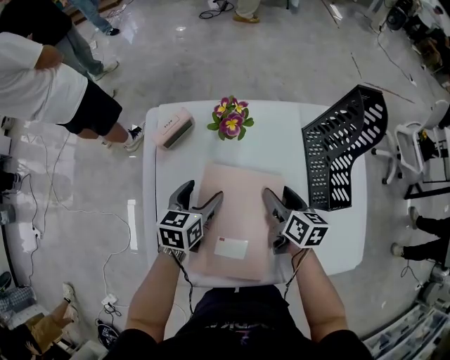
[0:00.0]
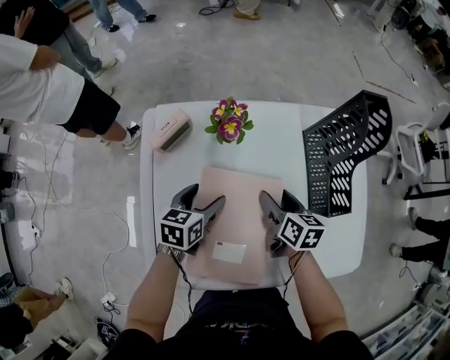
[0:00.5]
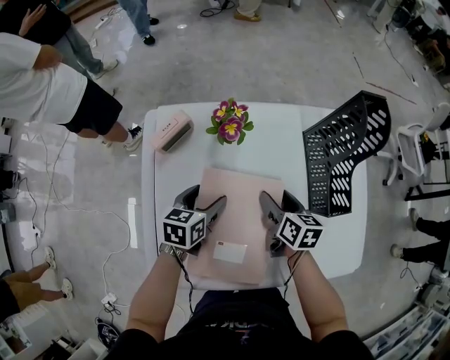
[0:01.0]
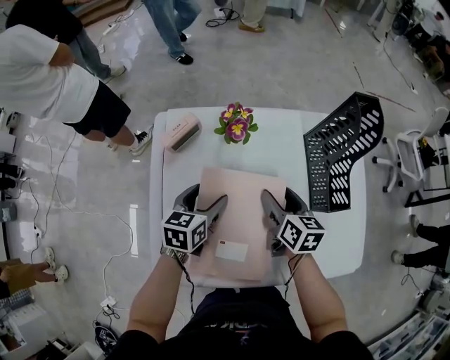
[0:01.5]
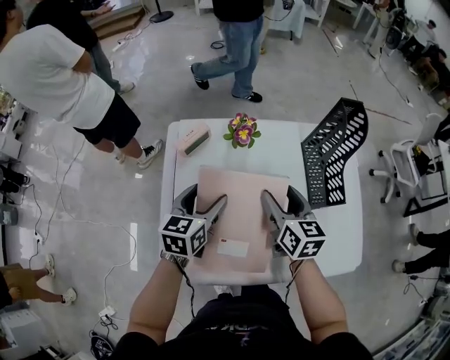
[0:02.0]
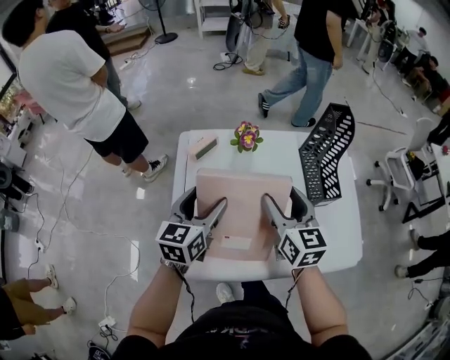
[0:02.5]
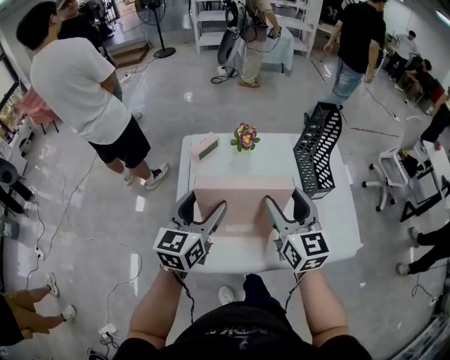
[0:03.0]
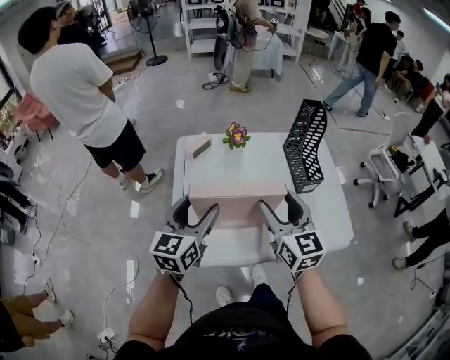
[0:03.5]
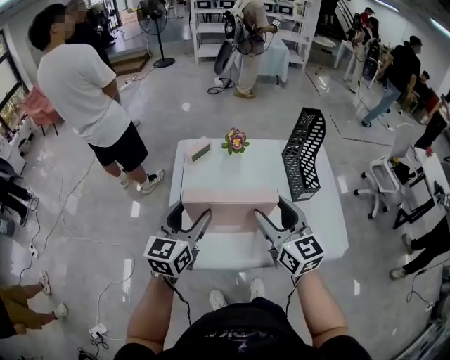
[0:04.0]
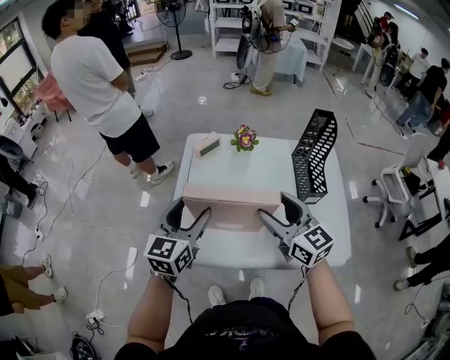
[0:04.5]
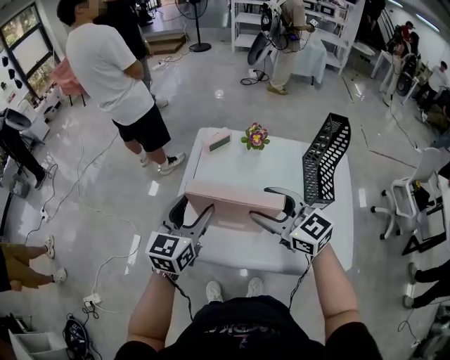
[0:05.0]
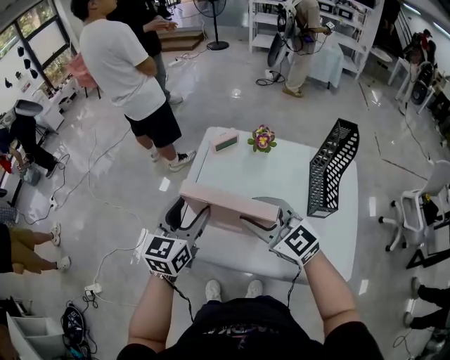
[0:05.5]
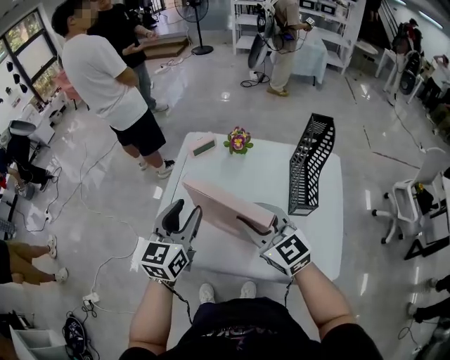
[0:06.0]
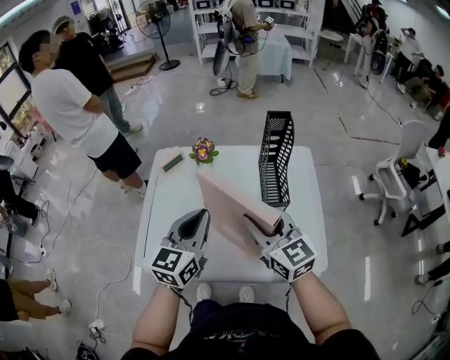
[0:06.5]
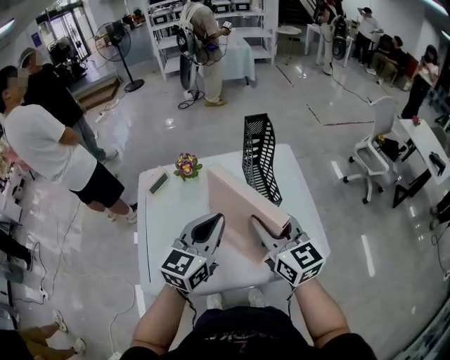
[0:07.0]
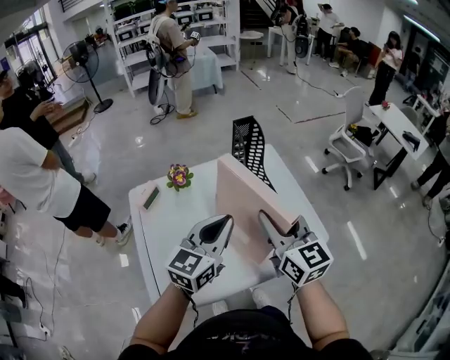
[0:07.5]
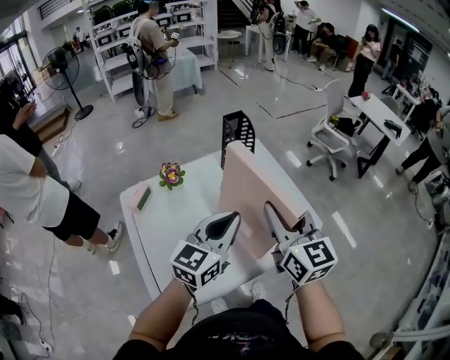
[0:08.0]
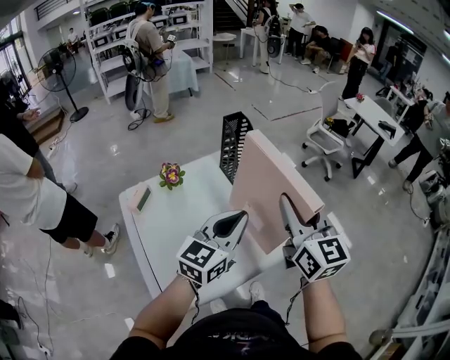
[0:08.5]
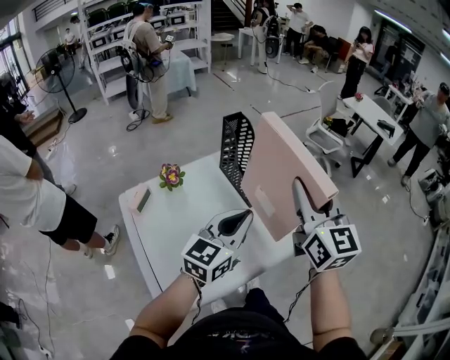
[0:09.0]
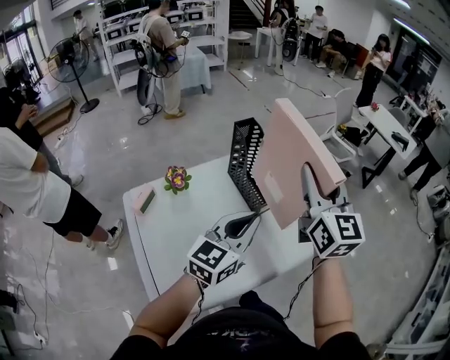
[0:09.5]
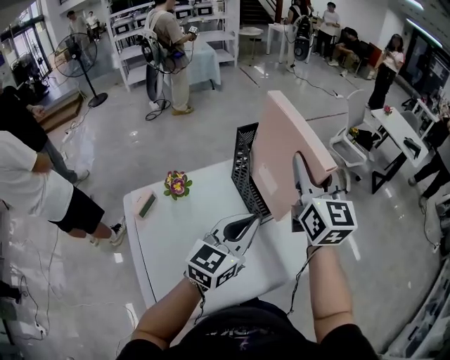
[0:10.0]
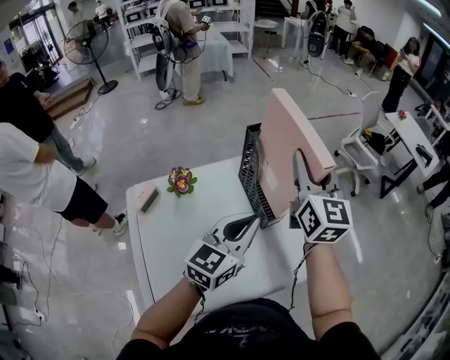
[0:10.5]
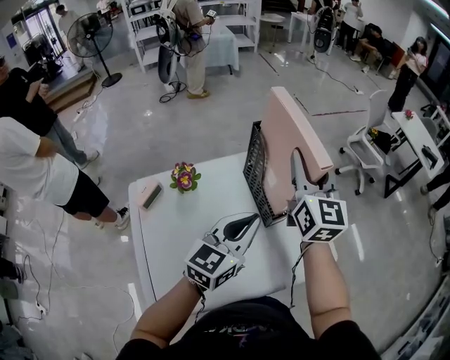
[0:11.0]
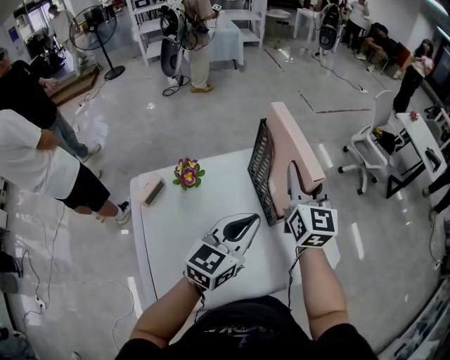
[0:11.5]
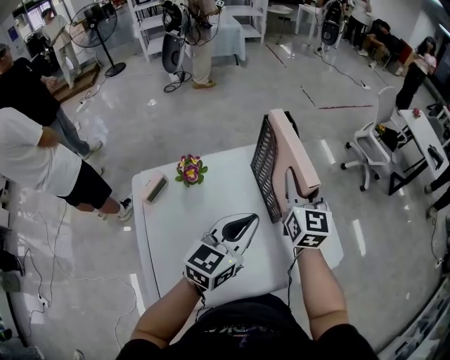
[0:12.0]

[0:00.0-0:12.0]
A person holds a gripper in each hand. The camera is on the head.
0:00.0 to 0:02.0: The grippers both shift upward by about 10 cm. The right gripper swivels about 20 degrees.
0:02.0 to 0:04.0: The two grippers go about 20 cm backward and upward. The right gripper swivels some 30 degrees. Meanwhile the left gripper rotates approximately 20 degrees.
0:04.0 to 0:06.0: The left gripper ends up about 5 cm from where it was. Meanwhile the right gripper turns by approximately 30 degrees, and closes its fingers.
0:06.0 to 0:08.0: The left gripper shifts by approximately 20 cm, changes its angle by approximately 60 degrees, and closes up. The right gripper ends up some 15 cm from where it was, and turns by some 60 degrees.
0:08.0 to 0:10.0: The right gripper moves forward, approximately 20 cm. Meanwhile the left gripper heads forward, covering roughly 10 cm.
0:10.0 to 0:12.0: The left gripper travels to the left by about 5 cm, while the right gripper is displaced downward and to the left by approximately 15 cm.

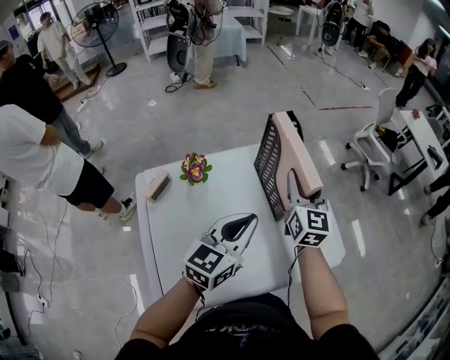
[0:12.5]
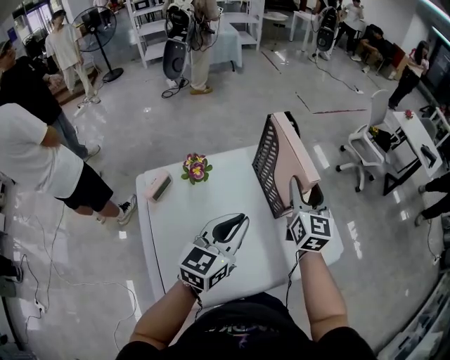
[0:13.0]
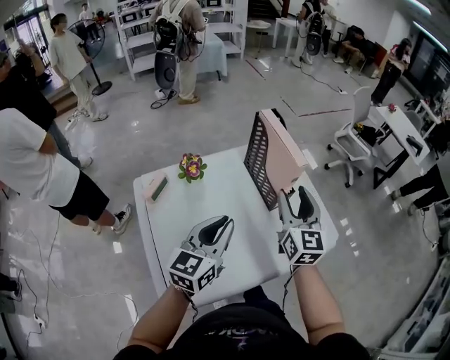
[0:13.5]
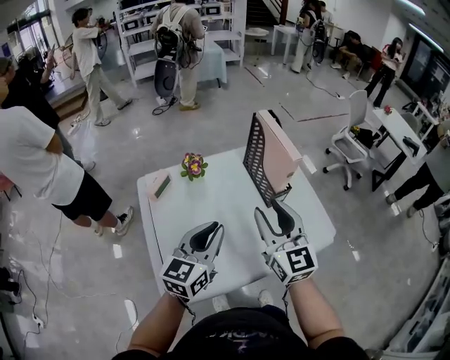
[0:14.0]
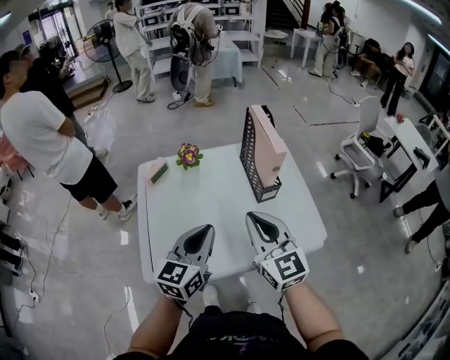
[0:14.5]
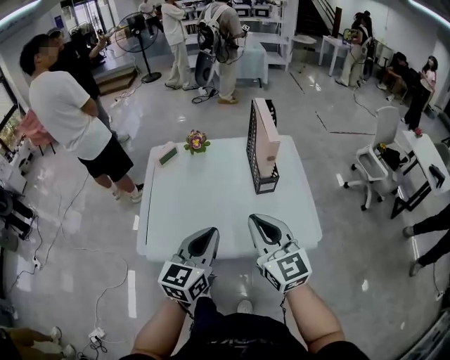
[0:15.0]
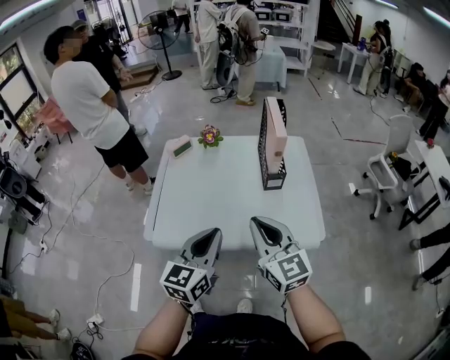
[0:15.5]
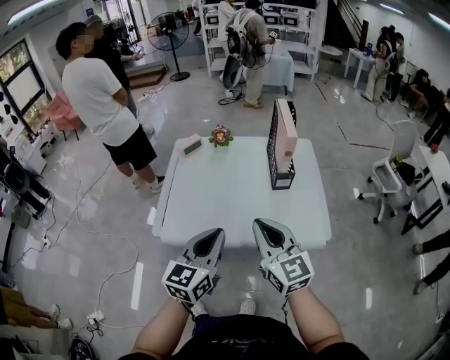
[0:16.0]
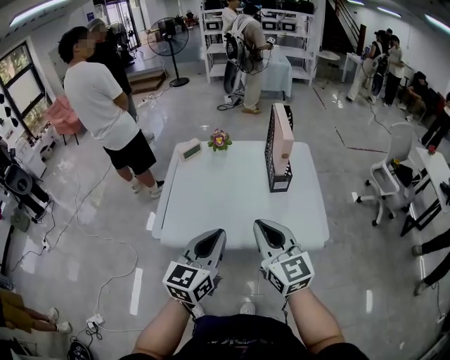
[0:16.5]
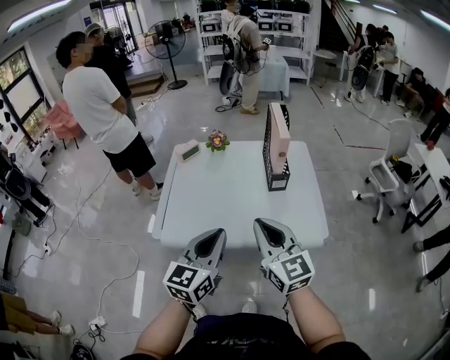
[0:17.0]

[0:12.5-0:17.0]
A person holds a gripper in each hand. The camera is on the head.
0:12.5 to 0:14.5: The right gripper travels backward by roughly 25 cm, rotates roughly 30 degrees, and closes, while the left gripper heads backward, covering roughly 15 cm.
0:14.5 to 0:17.0: The two grippers go roughly 15 cm backward.

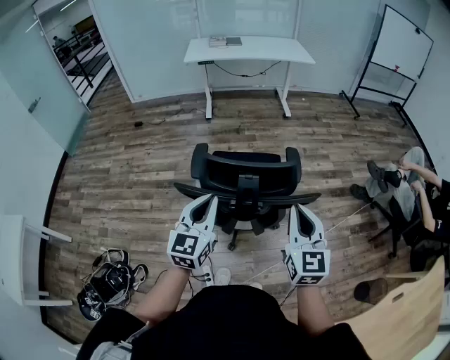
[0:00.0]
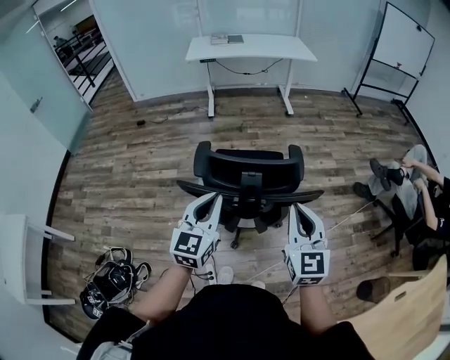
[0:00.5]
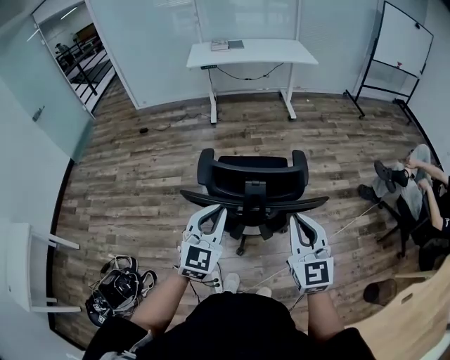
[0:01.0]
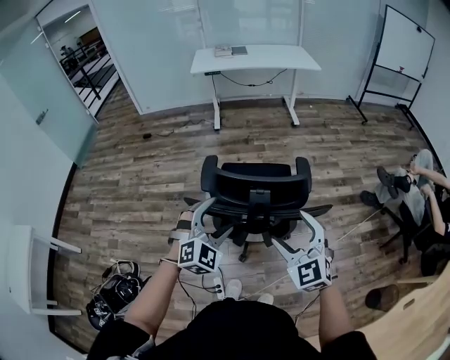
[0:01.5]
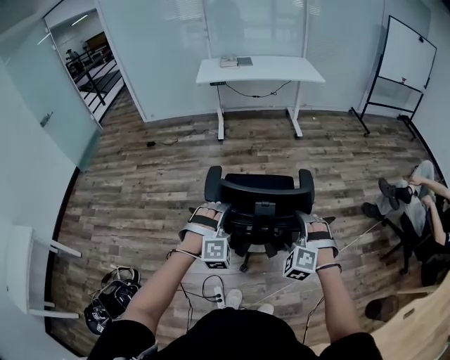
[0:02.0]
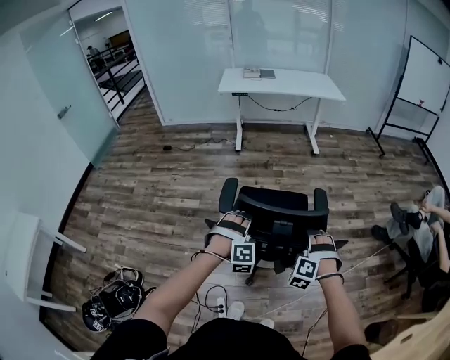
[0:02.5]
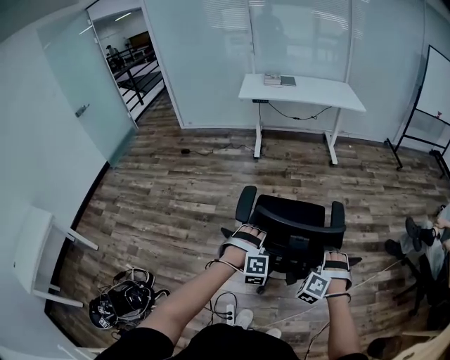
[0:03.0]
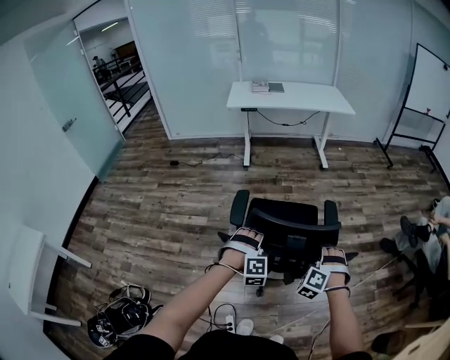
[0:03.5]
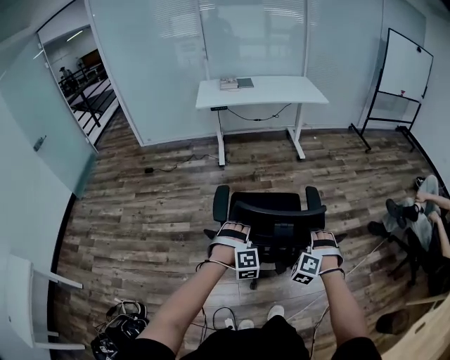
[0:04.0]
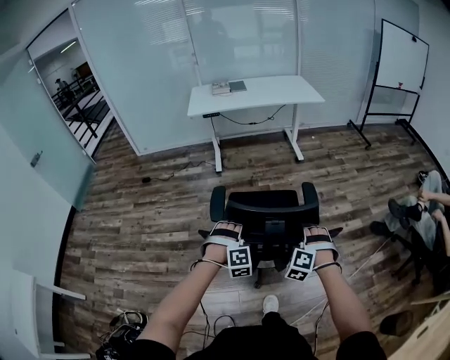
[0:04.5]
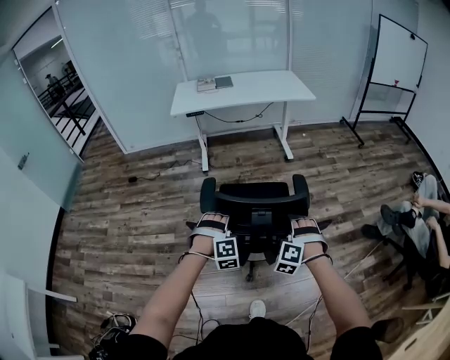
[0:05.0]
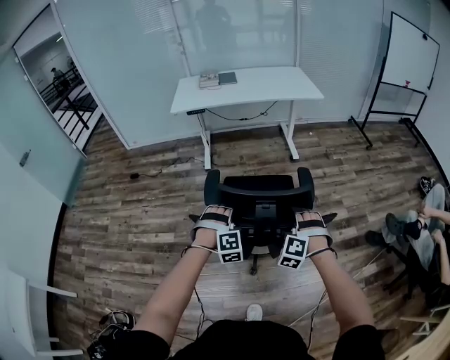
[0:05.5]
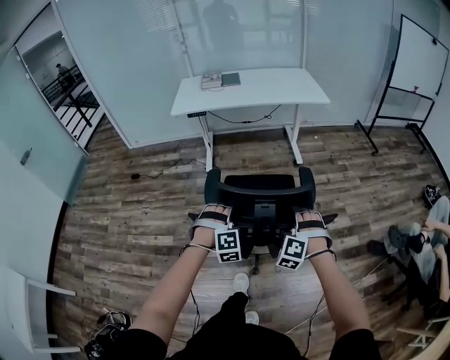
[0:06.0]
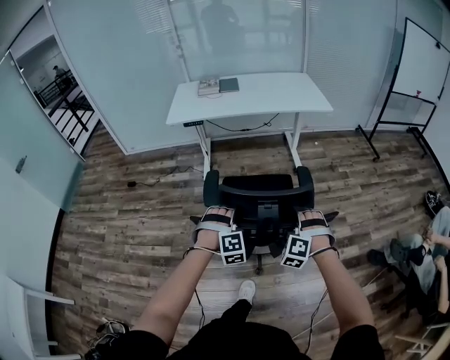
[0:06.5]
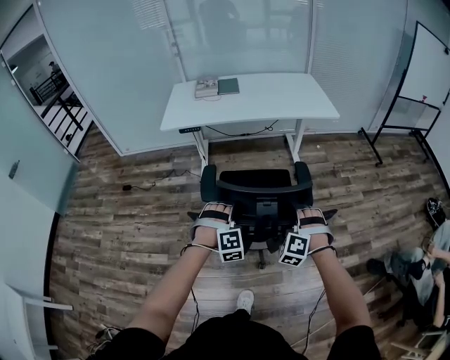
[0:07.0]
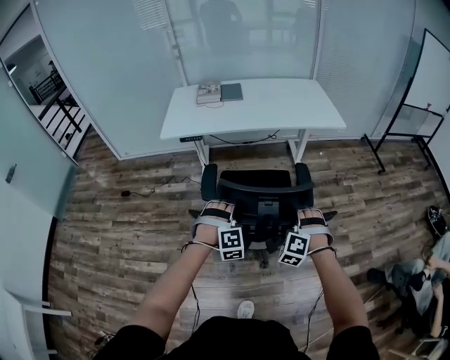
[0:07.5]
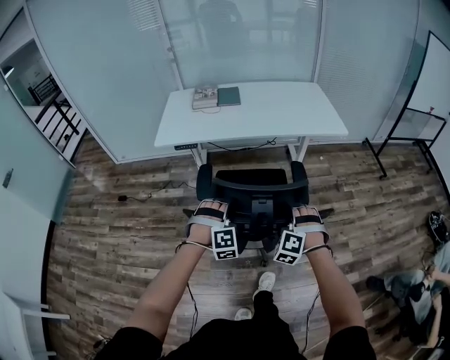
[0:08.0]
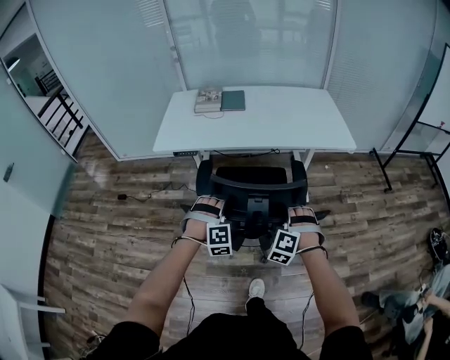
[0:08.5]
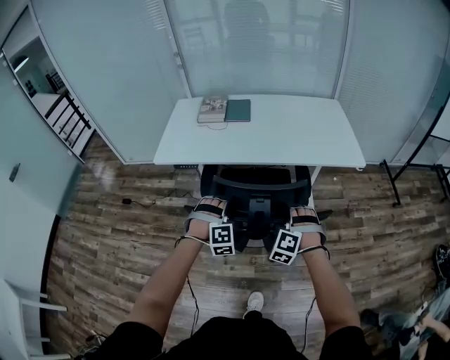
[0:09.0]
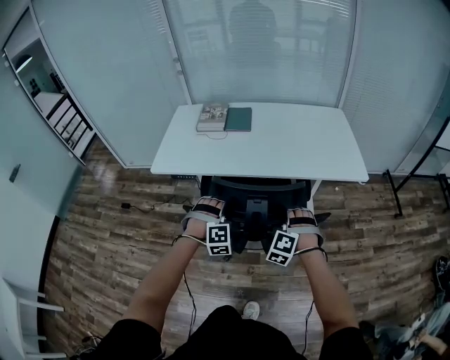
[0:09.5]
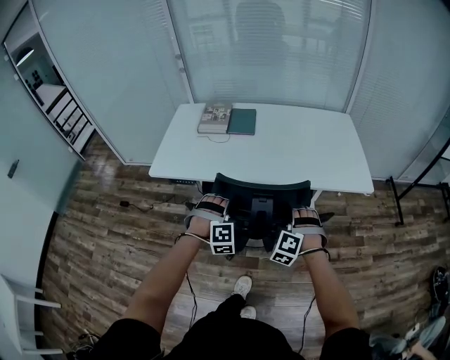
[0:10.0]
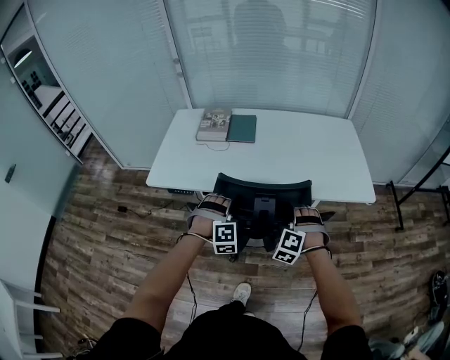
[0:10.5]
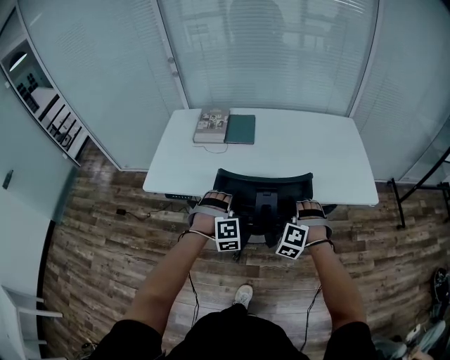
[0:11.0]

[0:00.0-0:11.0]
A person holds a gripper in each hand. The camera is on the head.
0:00.0 to 0:02.0: The right gripper goes approximately 15 cm downward, rolls counterclockwise, seen from behind, by some 70 degrees, and opens.
0:02.0 to 0:03.5: The right gripper ends up about 10 cm from where it was, and closes up.
0:03.5 to 0:05.5: The right gripper moves roughly 30 cm.
0:05.5 to 0:07.5: The right gripper moves some 35 cm.
0:07.5 to 0:09.0: The right gripper shifts by some 25 cm.
0:09.0 to 0:11.0: The right gripper moves about 20 cm.
